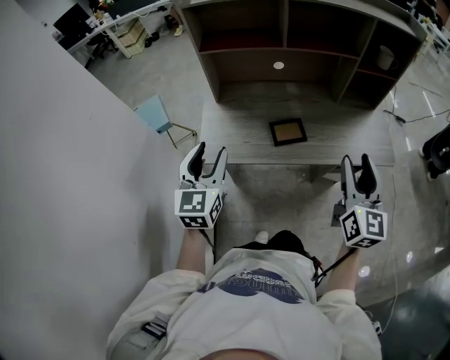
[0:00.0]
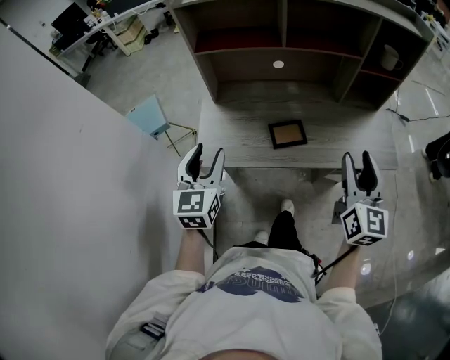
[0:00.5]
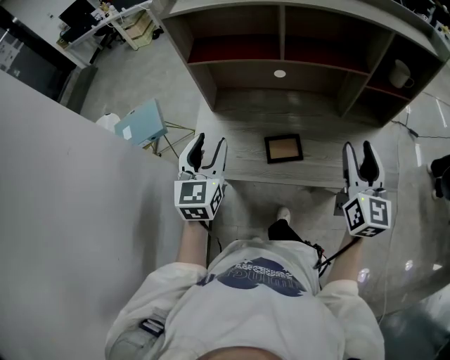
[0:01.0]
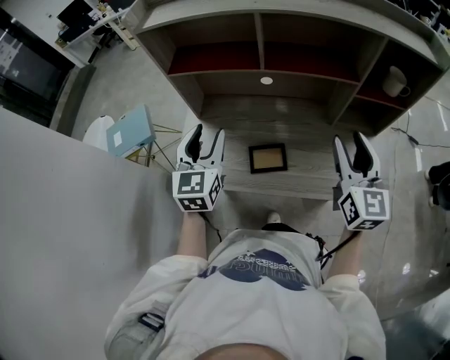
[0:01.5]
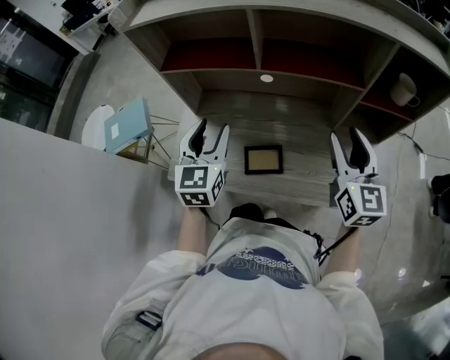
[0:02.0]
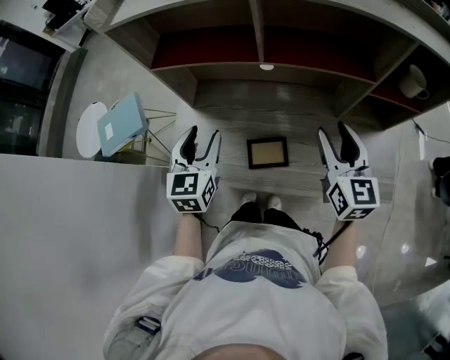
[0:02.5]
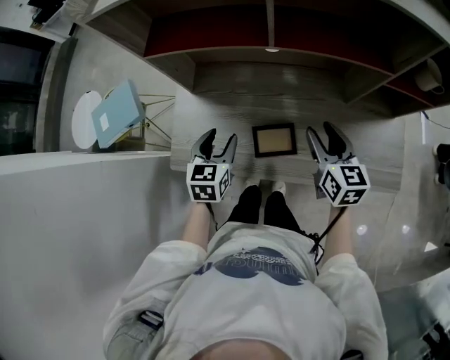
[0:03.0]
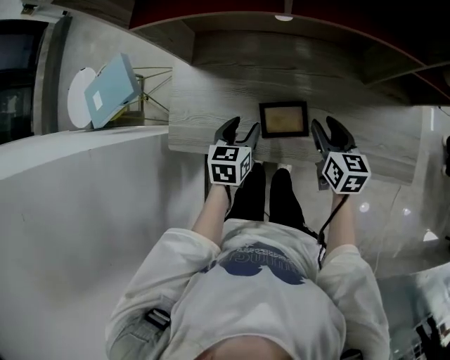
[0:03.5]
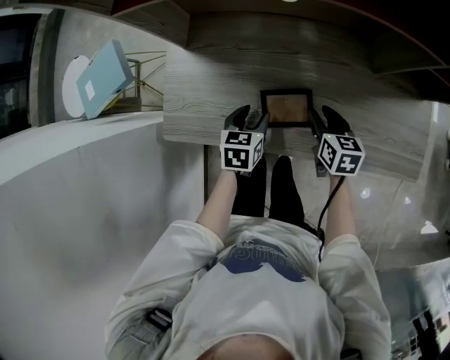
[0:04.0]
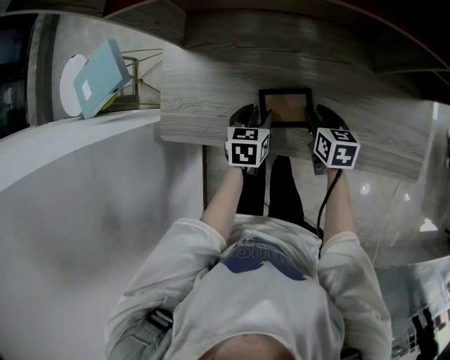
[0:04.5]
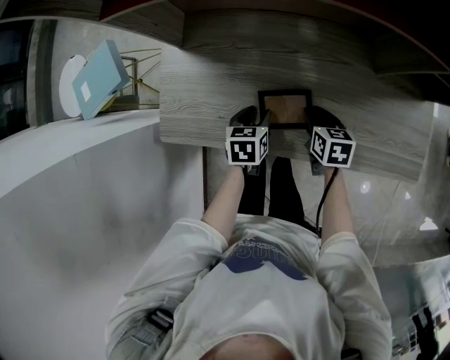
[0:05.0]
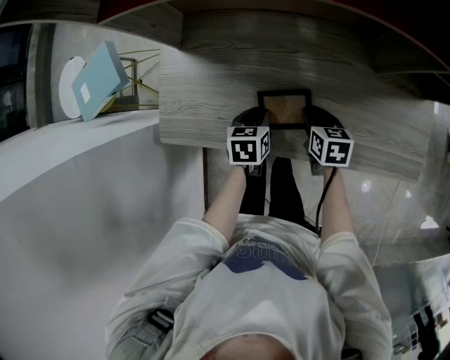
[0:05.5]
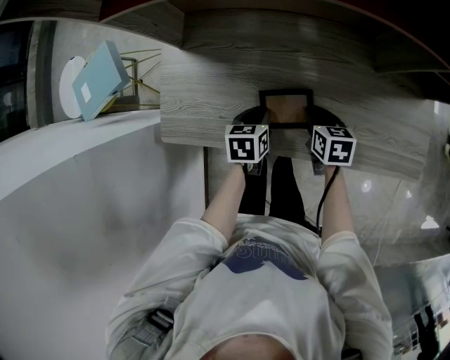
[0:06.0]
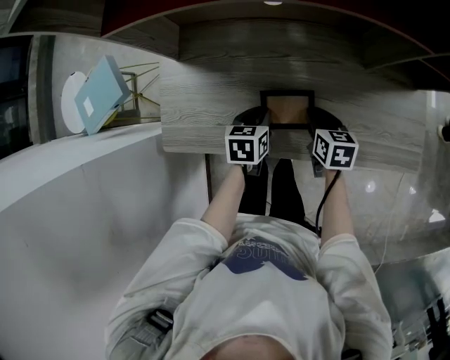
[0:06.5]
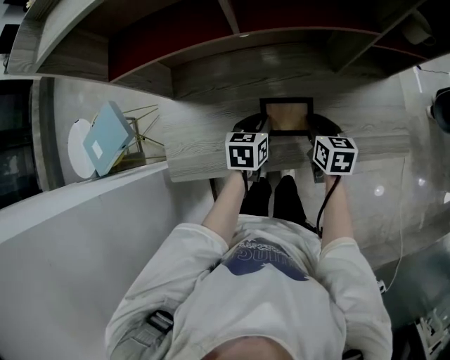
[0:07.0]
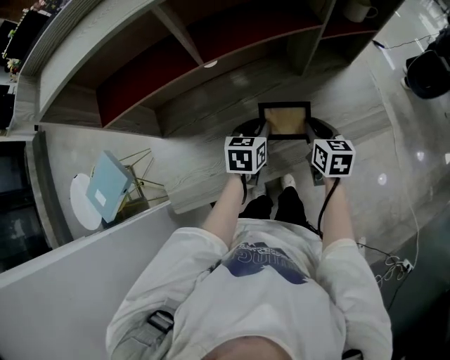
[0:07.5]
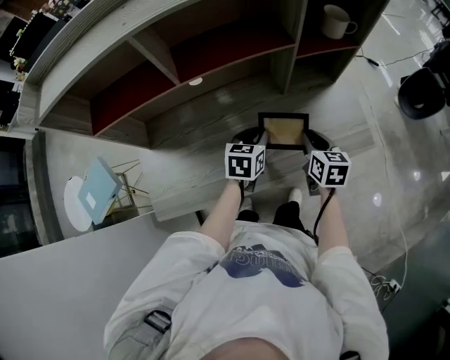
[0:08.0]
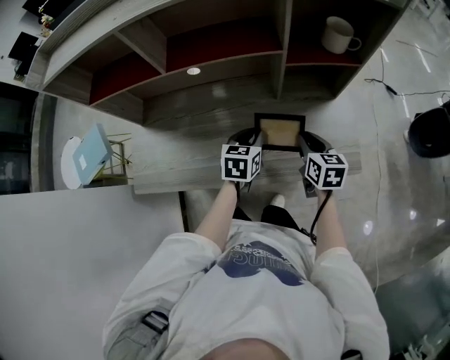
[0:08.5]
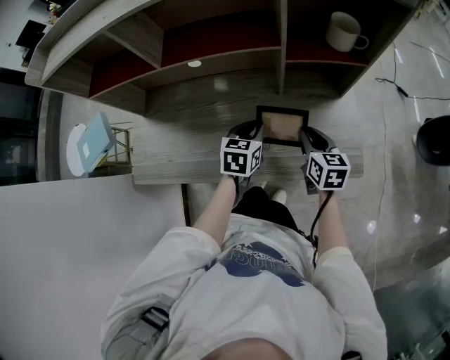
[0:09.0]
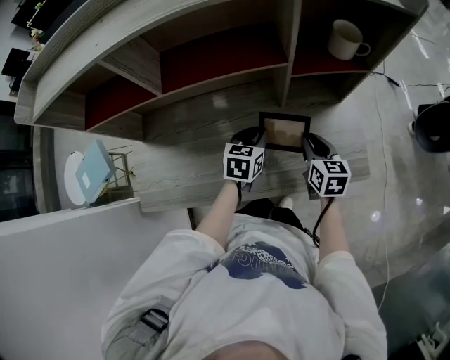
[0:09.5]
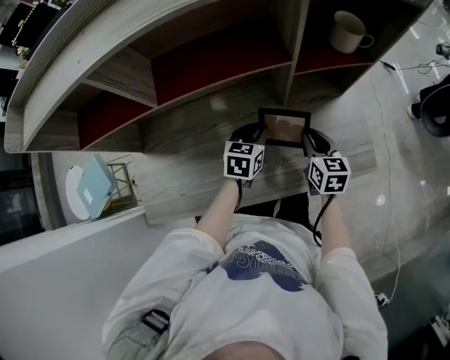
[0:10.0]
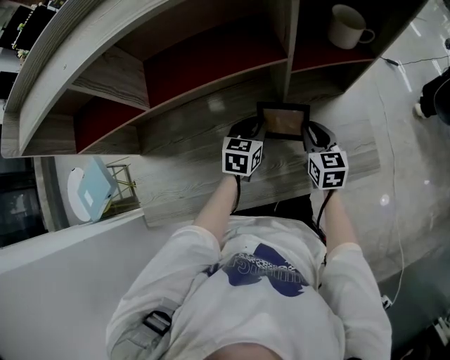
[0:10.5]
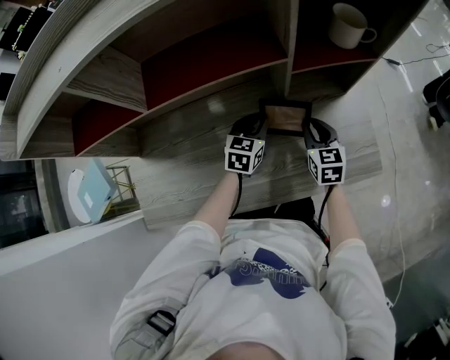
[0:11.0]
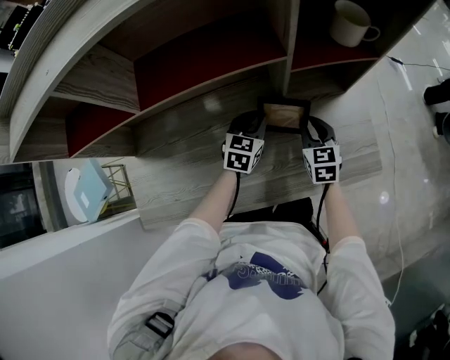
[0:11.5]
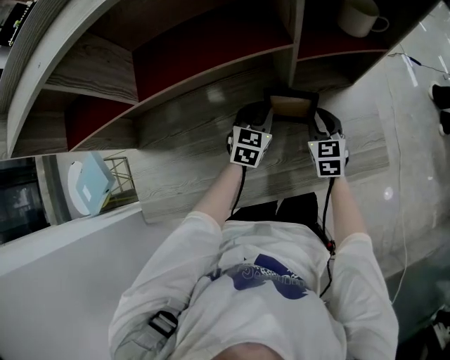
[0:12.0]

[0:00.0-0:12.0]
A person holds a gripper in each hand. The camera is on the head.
0:00.0 to 0:02.0: The right gripper moves forward, approximately 25 cm. Meanwhile the left gripper moves forward and to the right, about 25 cm.
0:02.0 to 0:04.0: Both grippers move downward, some 30 cm. The right gripper angles its fingers downward, by some 40 degrees, while the left gripper tips its fingers downward by roughly 30 degrees.
0:04.0 to 0:06.0: The left gripper closes; the right gripper closes its fingers.
0:06.0 to 0:08.0: The left gripper ends up approximately 25 cm from where it was, and swivels approximately 40 degrees; the right gripper changes place by approximately 25 cm, and rotates approximately 30 degrees.
0:08.0 to 0:10.0: Both grippers travel together forward, roughly 10 cm.
0:10.0 to 0:12.0: The right gripper heads downward and forward, covering about 10 cm, and rotates approximately 20 degrees, while the left gripper travels forward by about 5 cm.

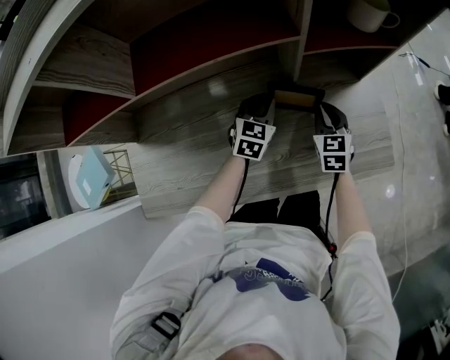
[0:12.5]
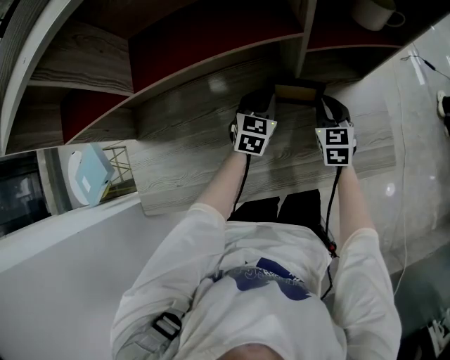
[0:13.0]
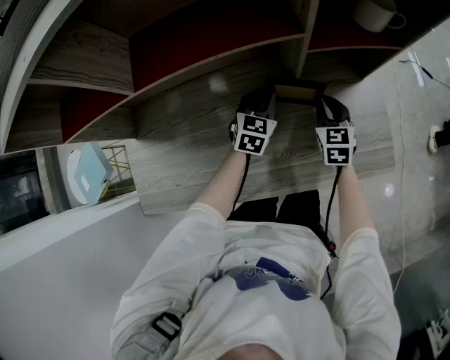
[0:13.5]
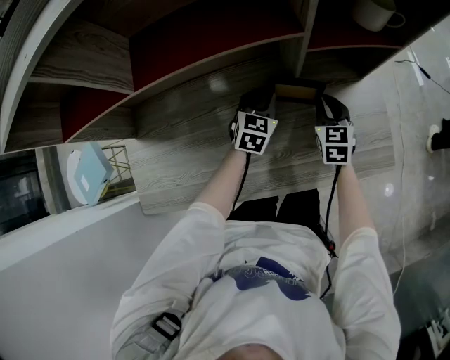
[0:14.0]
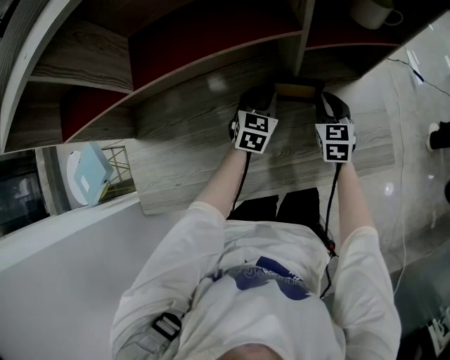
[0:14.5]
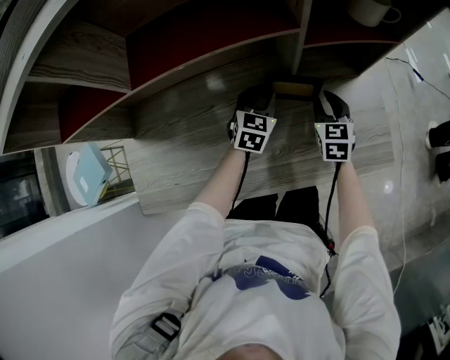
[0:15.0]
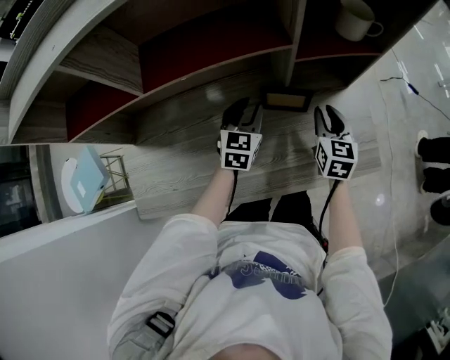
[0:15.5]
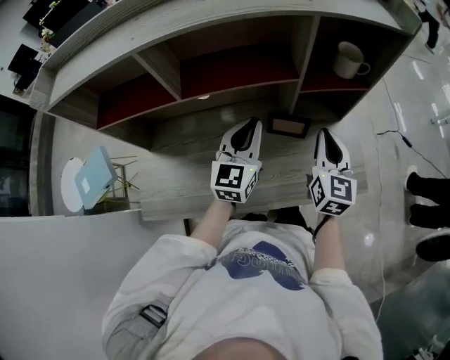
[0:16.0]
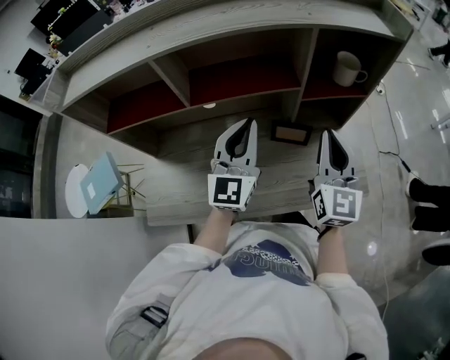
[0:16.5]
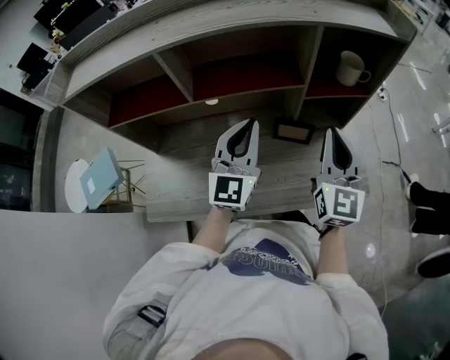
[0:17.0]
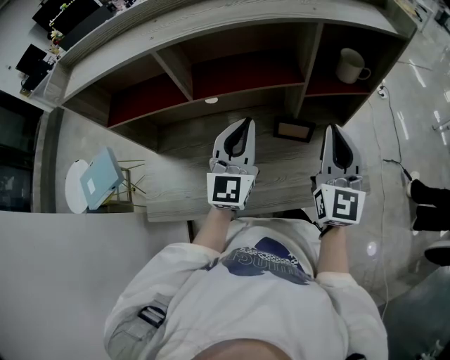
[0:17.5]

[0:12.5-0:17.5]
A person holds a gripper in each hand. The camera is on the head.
0:12.5 to 0:15.0: The grippers move only a little.
0:15.0 to 0:17.5: The two grippers go roughly 35 cm upward. The left gripper tilts its fingers approximately 40 degrees upward, and closes. Meanwhile the right gripper angles its fingers upward, by some 40 degrees, and closes.

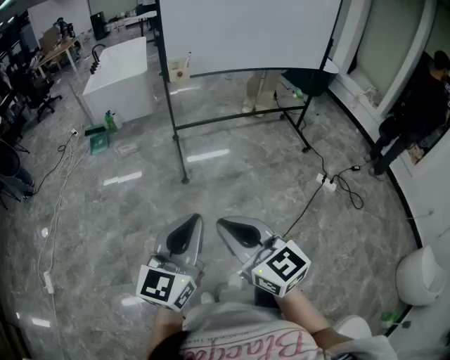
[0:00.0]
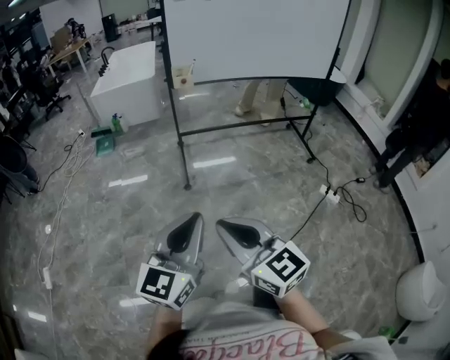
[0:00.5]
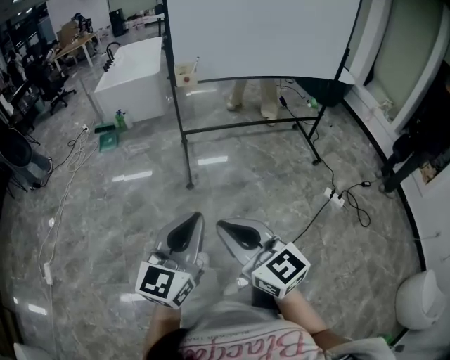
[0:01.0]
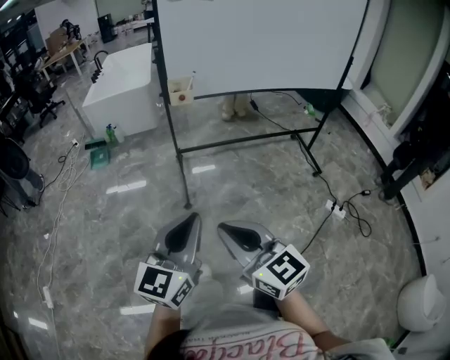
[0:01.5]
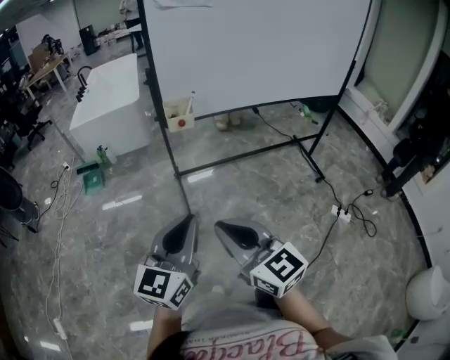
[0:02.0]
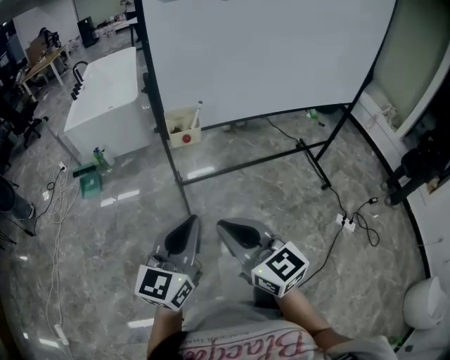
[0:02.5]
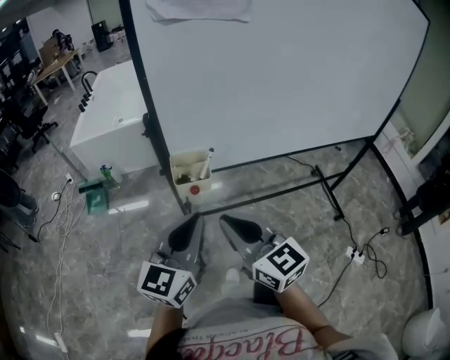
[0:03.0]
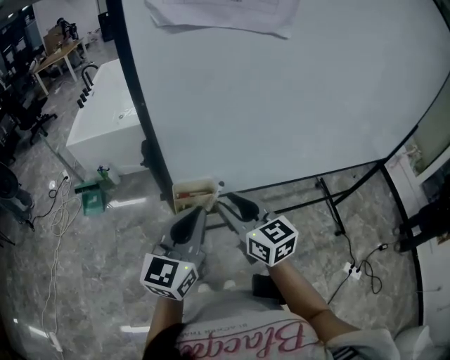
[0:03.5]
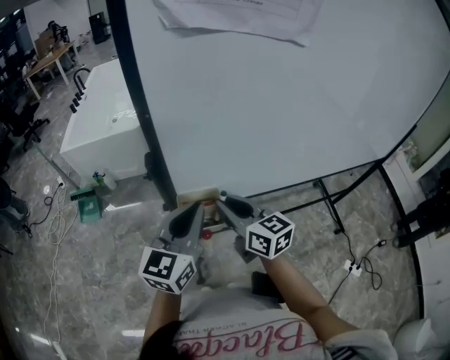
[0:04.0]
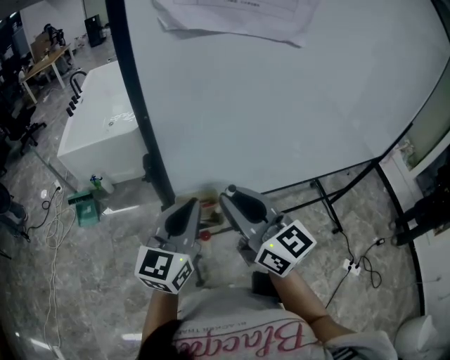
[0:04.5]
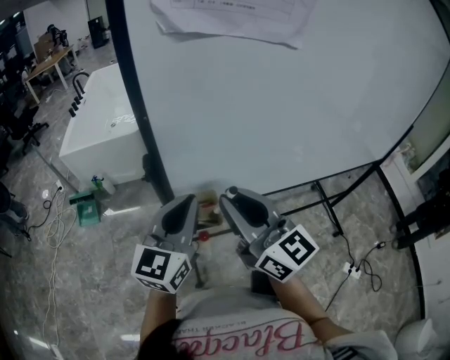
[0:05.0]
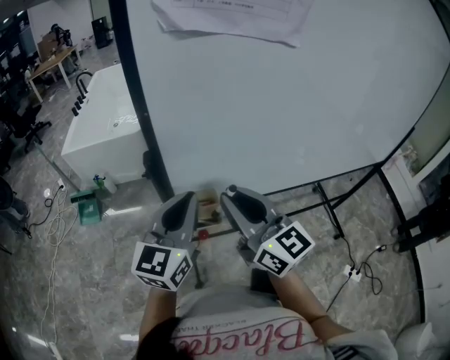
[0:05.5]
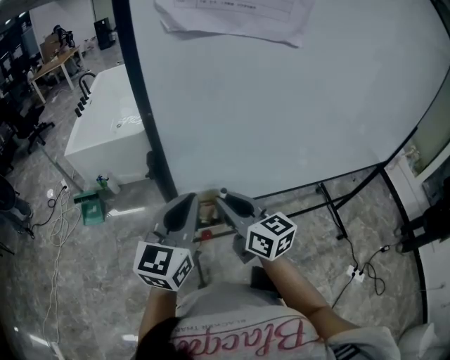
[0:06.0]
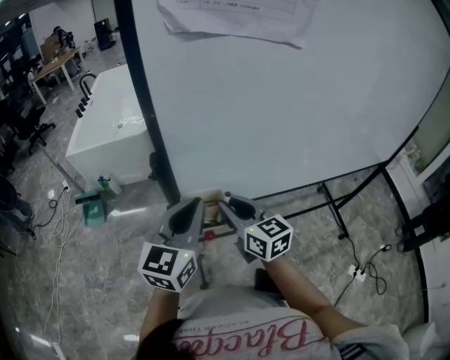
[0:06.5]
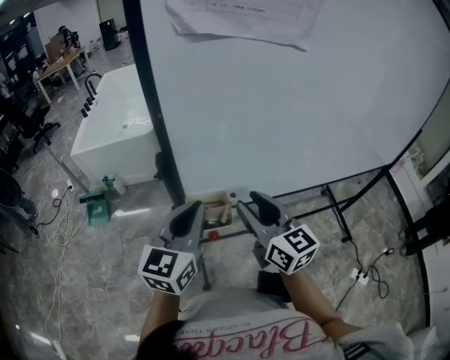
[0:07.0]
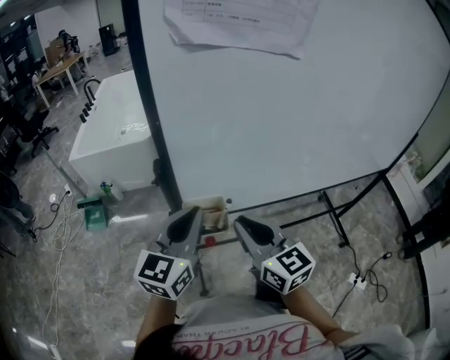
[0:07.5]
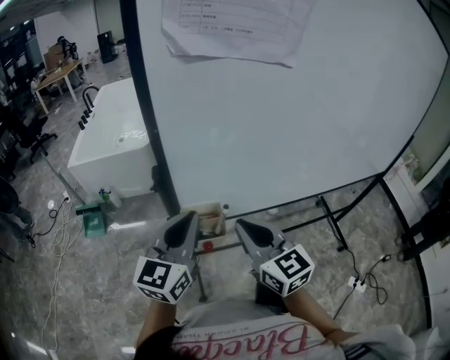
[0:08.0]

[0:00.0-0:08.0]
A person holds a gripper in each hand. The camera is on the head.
0:00.0 to 0:02.0: Both grippers move forward, approximately 30 cm.
0:02.0 to 0:04.0: The grippers both shift forward by approximately 40 cm.
0:04.0 to 0:06.0: The right gripper moves about 15 cm upward and comes back.
0:06.0 to 0:08.0: The right gripper goes about 5 cm backward, and opens, then closes again.

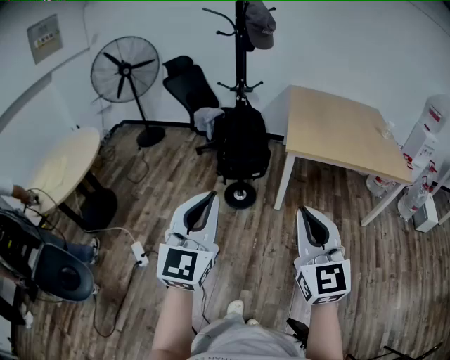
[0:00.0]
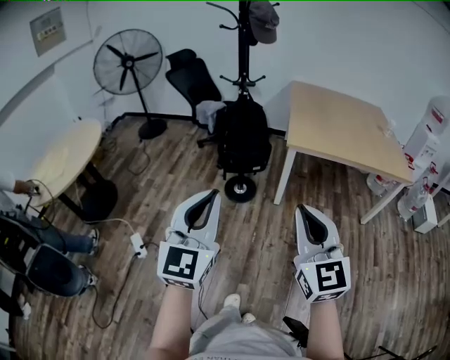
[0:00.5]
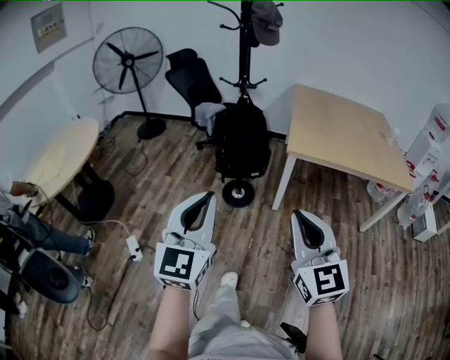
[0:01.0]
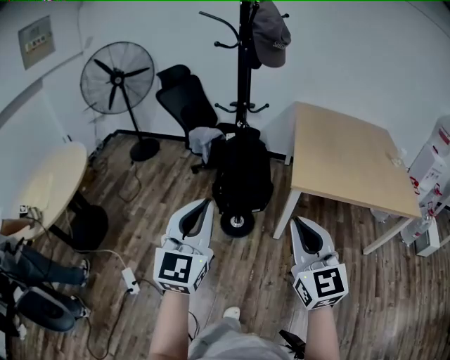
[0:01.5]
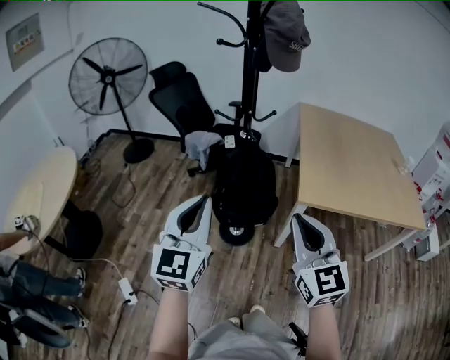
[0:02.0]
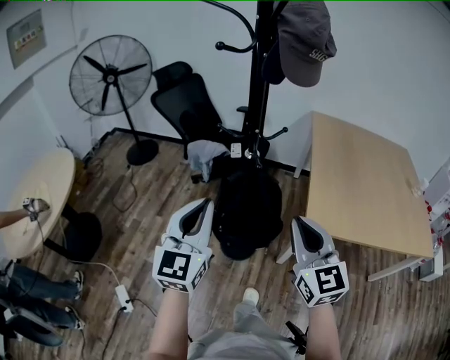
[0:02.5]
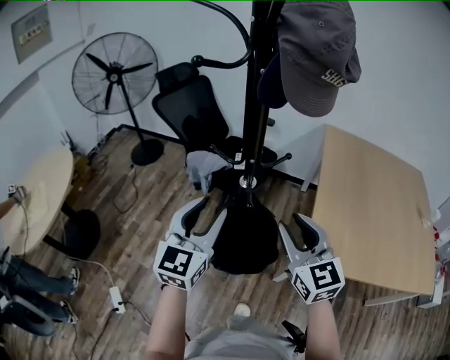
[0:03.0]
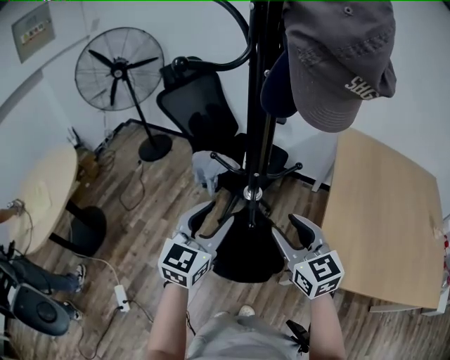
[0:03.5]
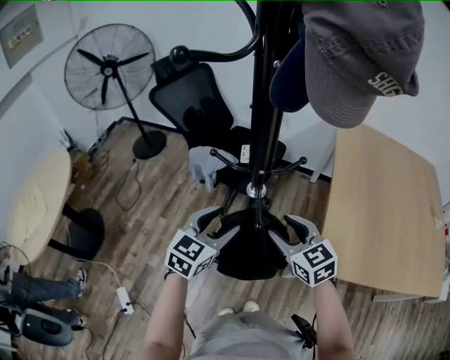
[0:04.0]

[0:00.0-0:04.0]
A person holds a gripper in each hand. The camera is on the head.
0:00.0 to 0:02.0: The two grippers go approximately 35 cm forward.
0:02.0 to 0:04.0: The right gripper is displaced forward by about 35 cm, swivels some 30 degrees, and opens up. Meanwhile the left gripper moves forward and downward, about 35 cm, swivels approximately 30 degrees, and opens.
